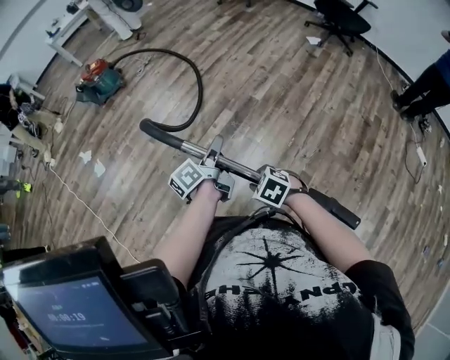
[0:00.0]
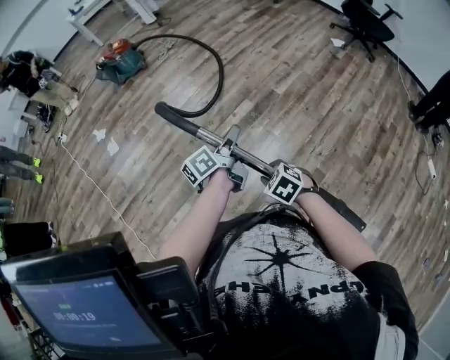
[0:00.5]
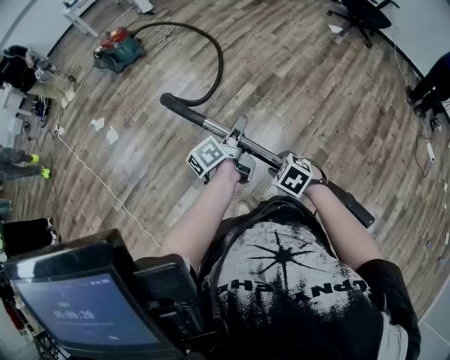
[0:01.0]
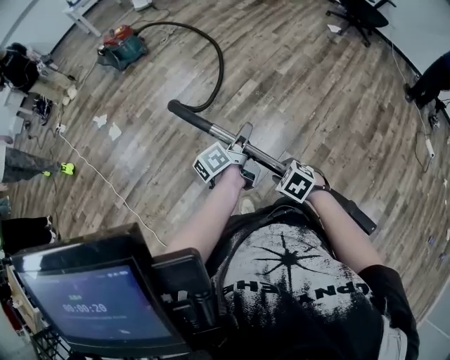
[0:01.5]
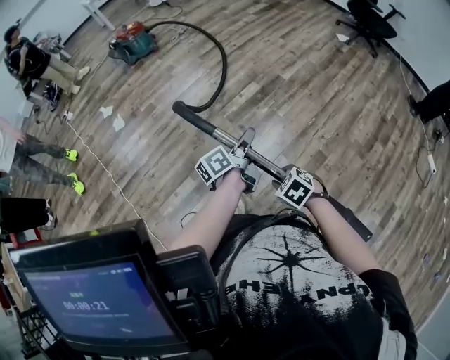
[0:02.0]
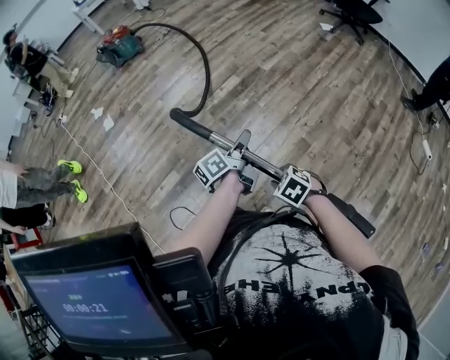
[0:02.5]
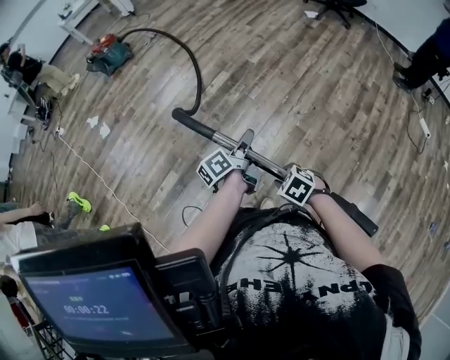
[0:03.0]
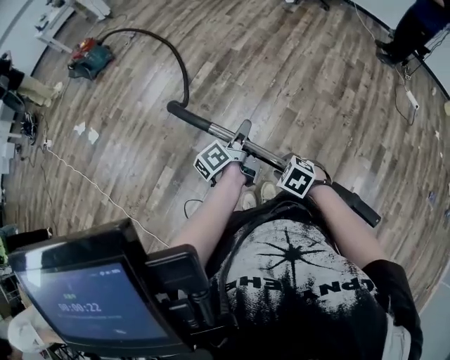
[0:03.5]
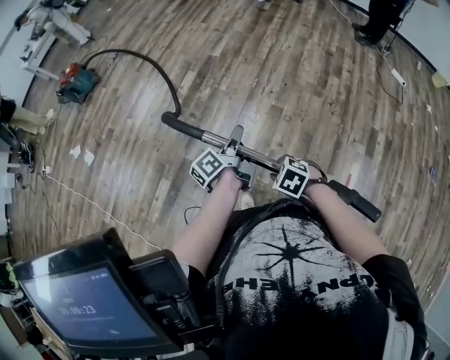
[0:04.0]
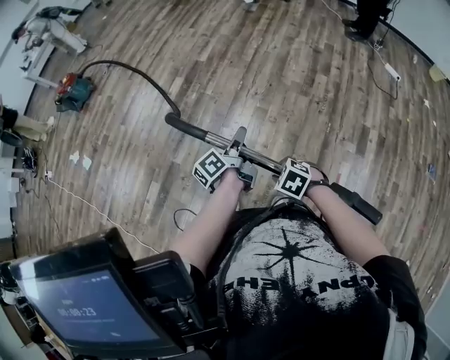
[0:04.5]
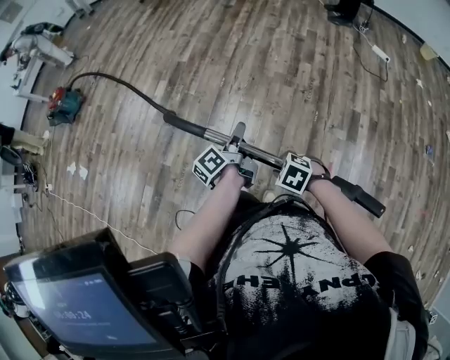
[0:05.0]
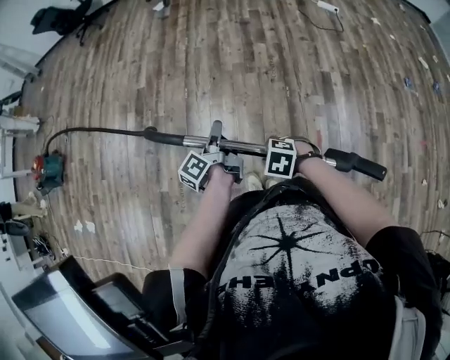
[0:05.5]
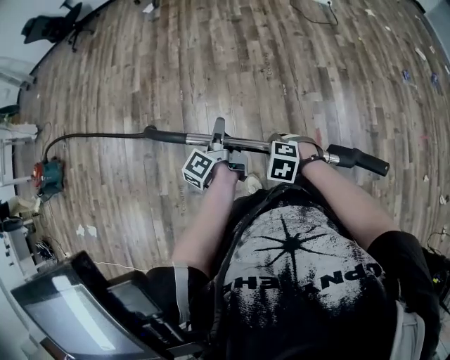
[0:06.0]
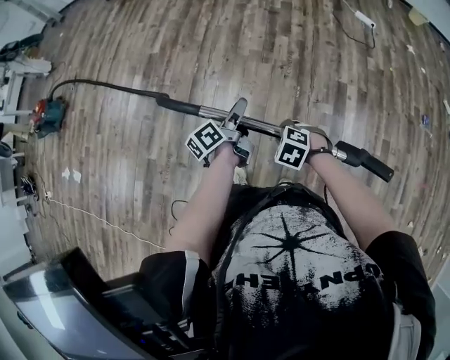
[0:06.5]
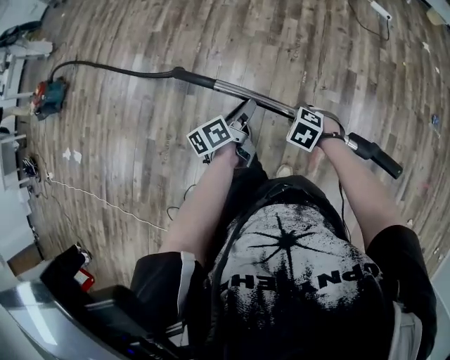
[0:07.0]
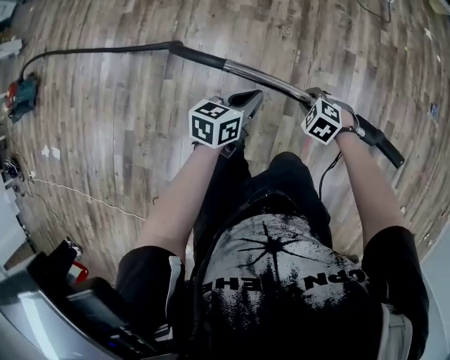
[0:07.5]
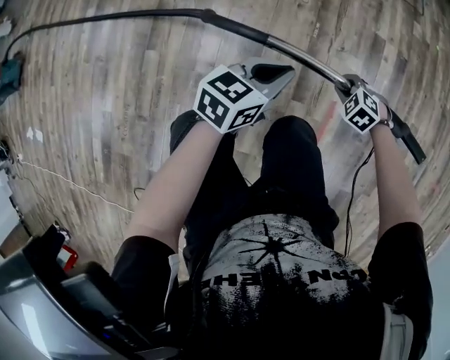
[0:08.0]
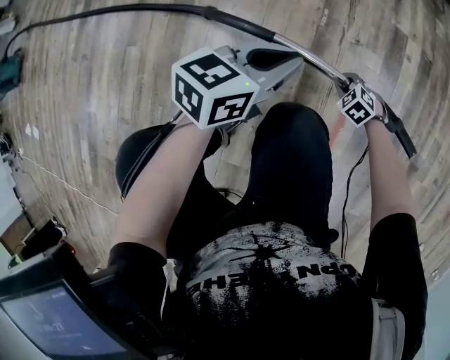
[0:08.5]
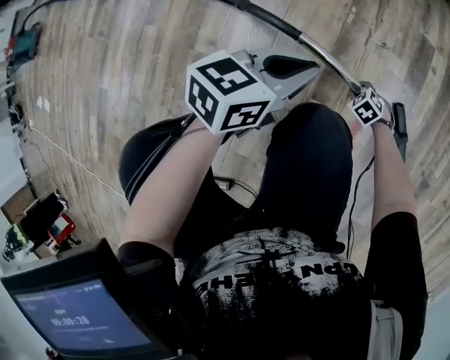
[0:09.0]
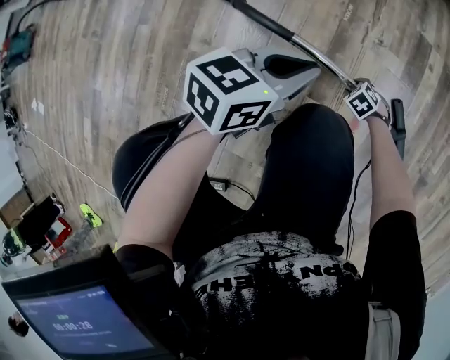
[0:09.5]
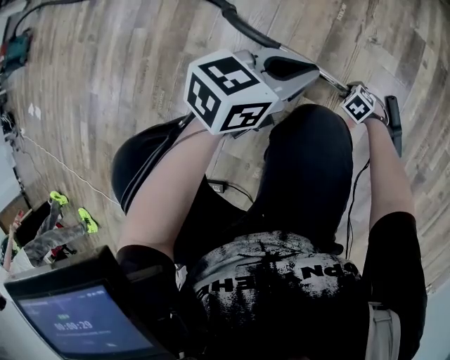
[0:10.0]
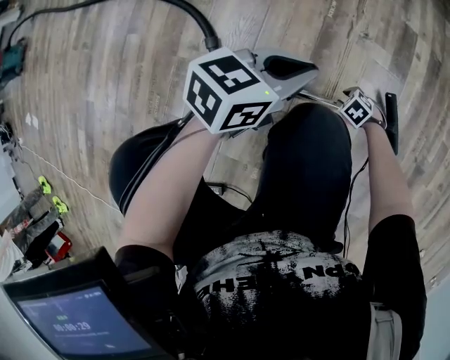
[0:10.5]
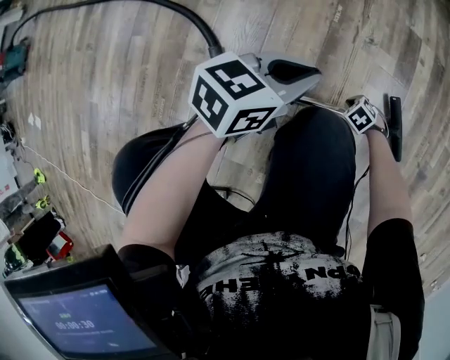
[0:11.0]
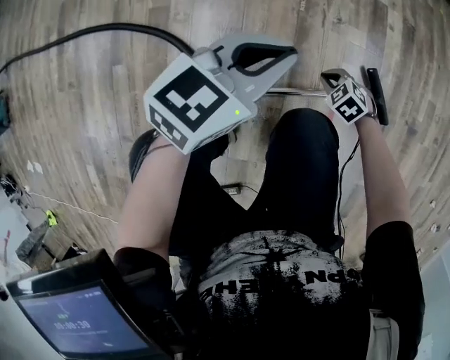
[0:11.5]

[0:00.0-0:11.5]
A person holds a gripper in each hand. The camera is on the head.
0:00.0 to 0:02.0: The grippers both shift backward and to the left by roughly 20 cm.
0:02.0 to 0:04.0: The two grippers go roughly 25 cm backward and to the right.
0:04.0 to 0:06.0: The two grippers go approximately 30 cm to the right.
0:06.0 to 0:07.5: The left gripper changes place by approximately 20 cm, changes its angle by approximately 60 degrees, and opens, then closes again; the right gripper moves about 30 cm.
0:07.5 to 0:09.5: The right gripper travels downward by some 60 cm, and opens up. Meanwhile the left gripper travels downward by about 30 cm.
0:09.5 to 0:11.5: The left gripper moves upward, some 10 cm, and rotates about 20 degrees, while the right gripper goes approximately 15 cm upward, and closes its fingers.

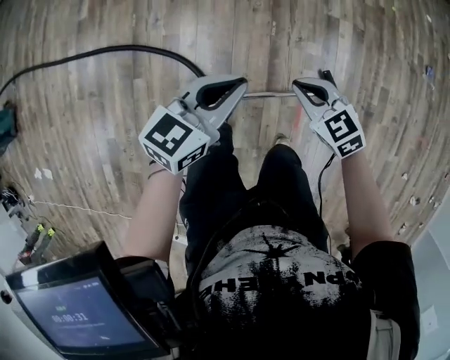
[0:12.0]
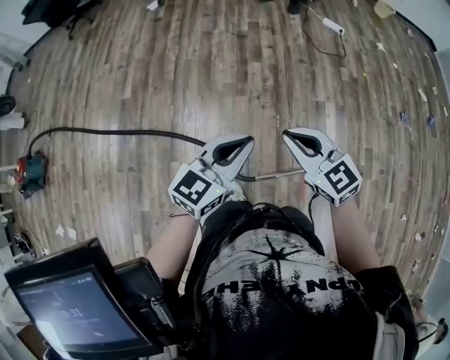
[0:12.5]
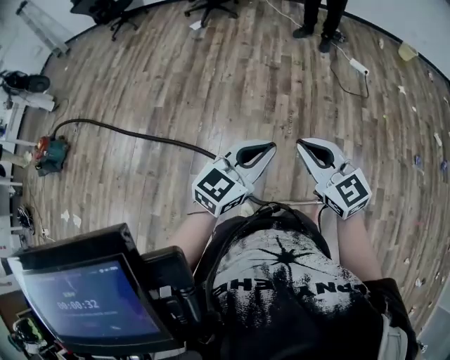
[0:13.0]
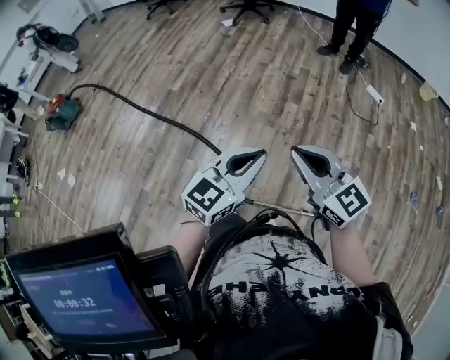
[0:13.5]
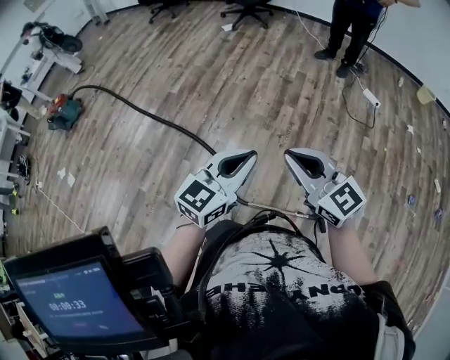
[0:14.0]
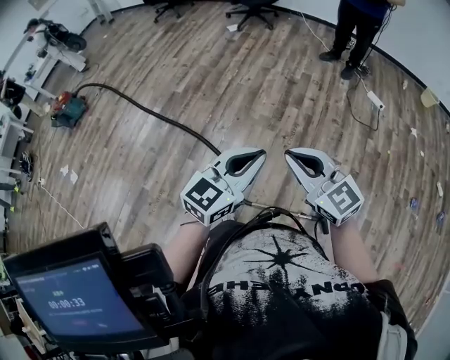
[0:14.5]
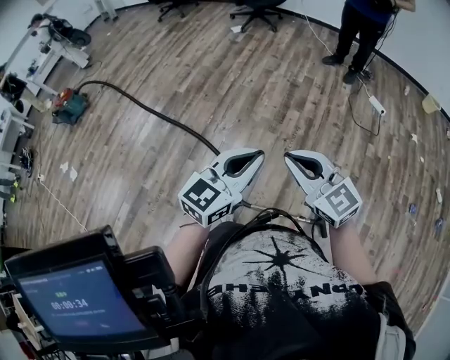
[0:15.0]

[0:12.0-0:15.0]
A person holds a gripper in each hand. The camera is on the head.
0:12.0 to 0:13.5: The grippers both shift upward by roughly 35 cm. The right gripper points its fingers approximately 40 degrees further upward; the left gripper swivels roughly 30 degrees.
0:13.5 to 0:15.0: The grippers stay close to where they were, moving slightly.

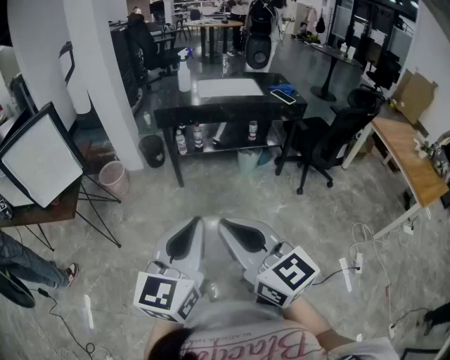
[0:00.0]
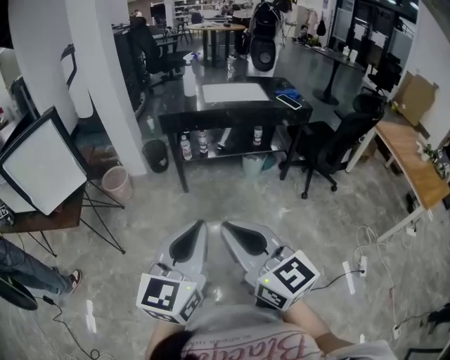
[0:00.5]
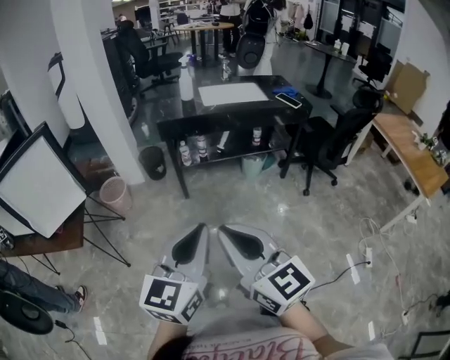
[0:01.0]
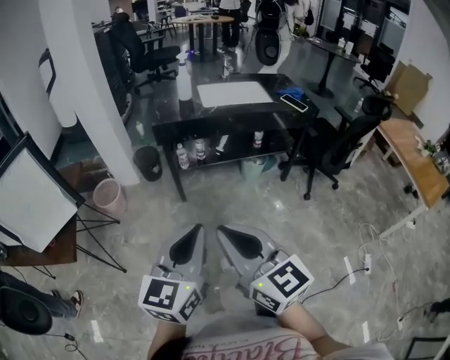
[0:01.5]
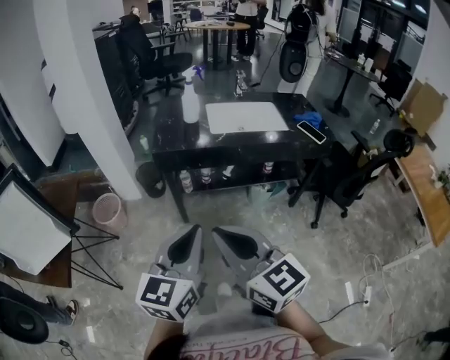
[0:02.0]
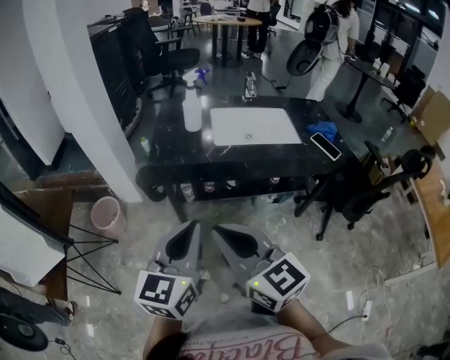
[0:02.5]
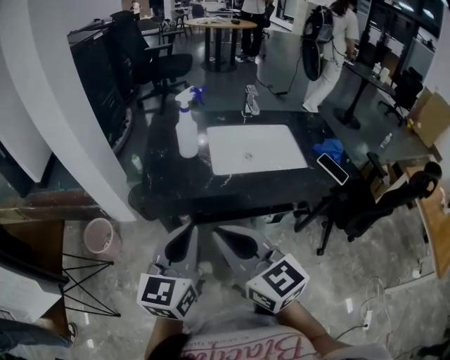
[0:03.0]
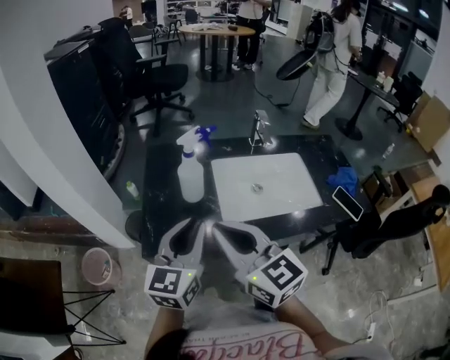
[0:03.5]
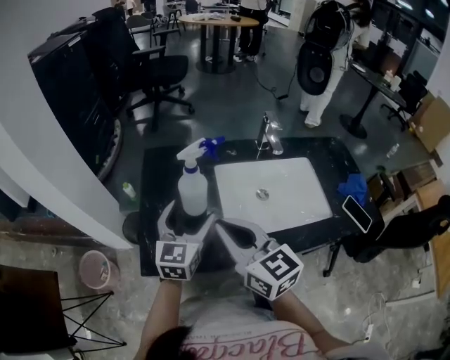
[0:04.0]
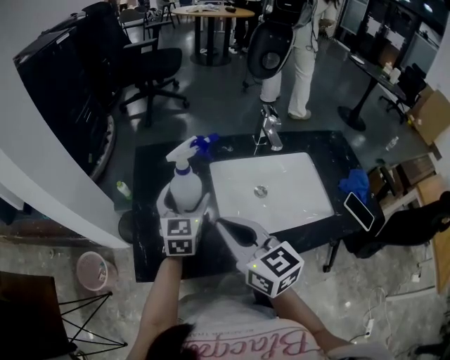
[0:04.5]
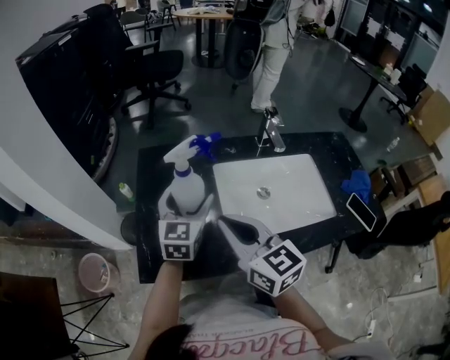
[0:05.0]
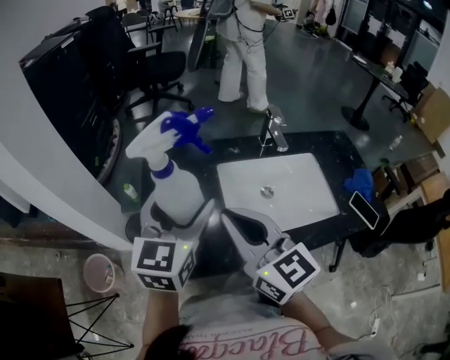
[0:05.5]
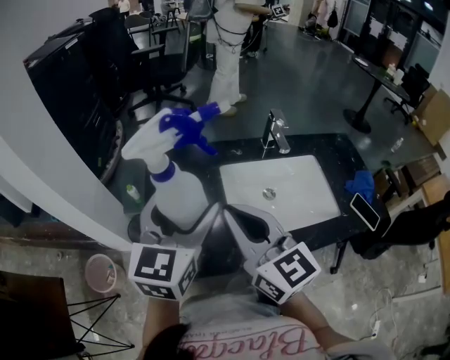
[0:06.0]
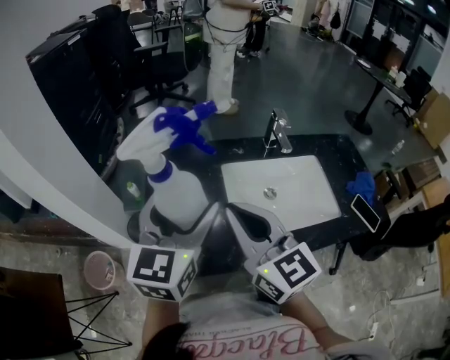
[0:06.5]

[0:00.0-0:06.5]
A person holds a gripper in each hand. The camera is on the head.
0:00.0 to 0:02.0: The grippers both shift forward by approximately 30 cm.
0:02.0 to 0:04.5: Both grippers are carried forward, about 60 cm. The left gripper opens its fingers.
0:04.5 to 0:06.5: The left gripper moves upward and backward, roughly 20 cm. The right gripper shifts roughly 10 cm upward.

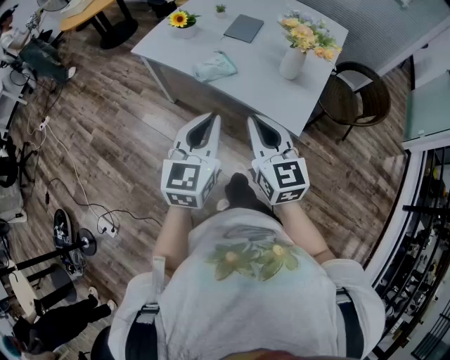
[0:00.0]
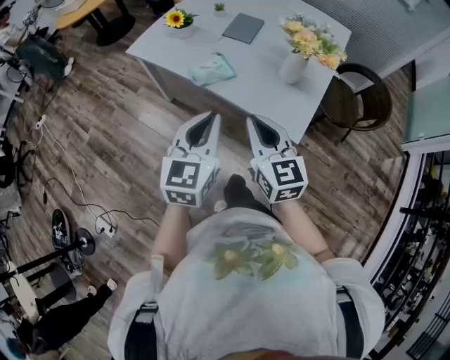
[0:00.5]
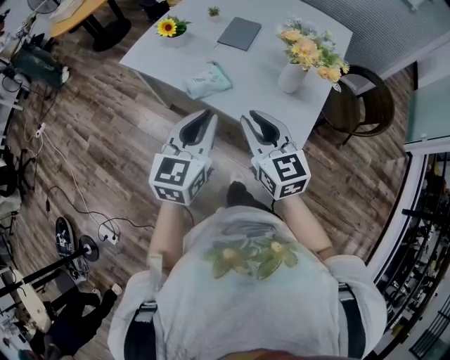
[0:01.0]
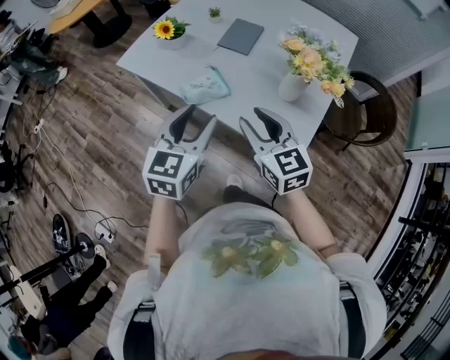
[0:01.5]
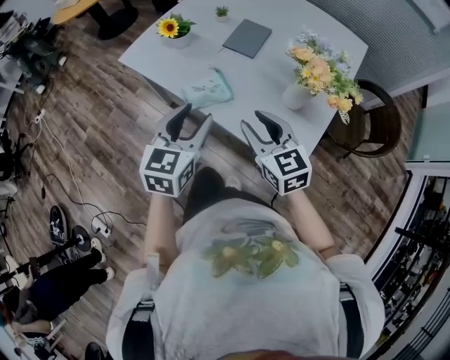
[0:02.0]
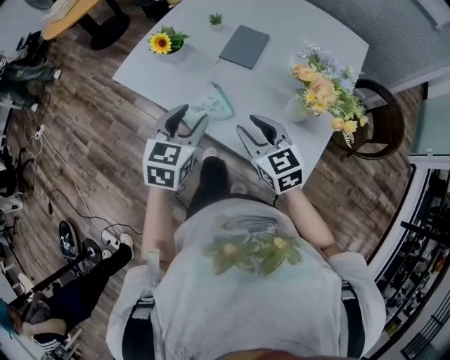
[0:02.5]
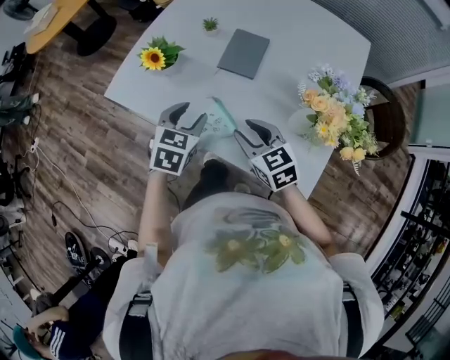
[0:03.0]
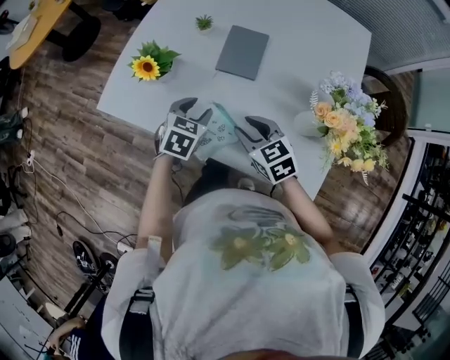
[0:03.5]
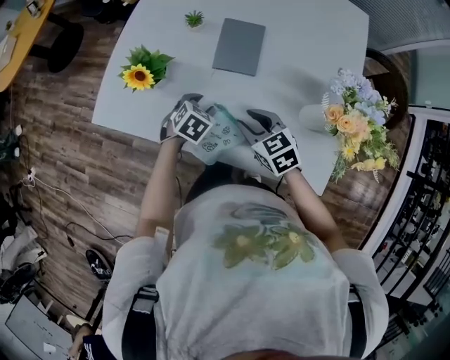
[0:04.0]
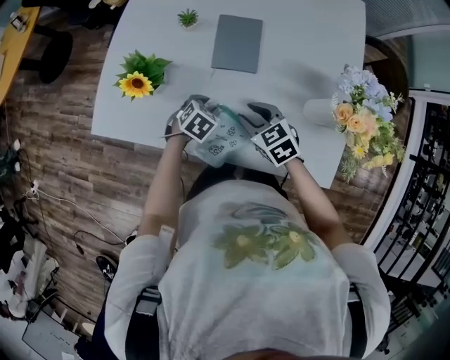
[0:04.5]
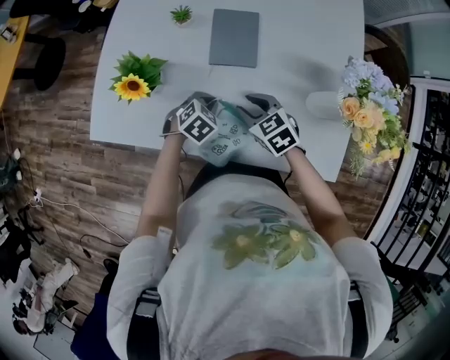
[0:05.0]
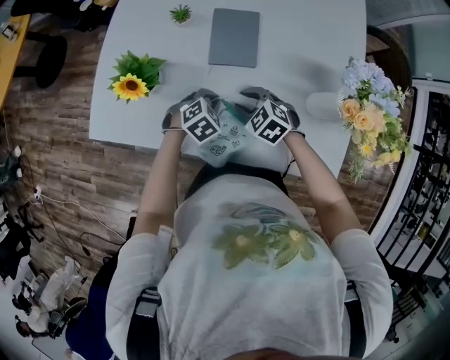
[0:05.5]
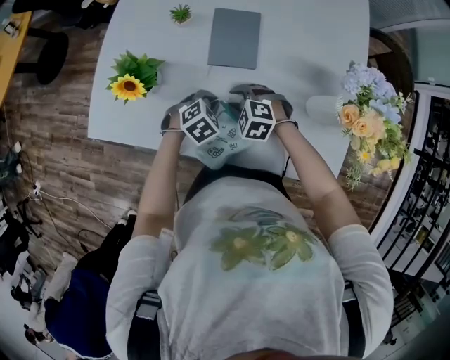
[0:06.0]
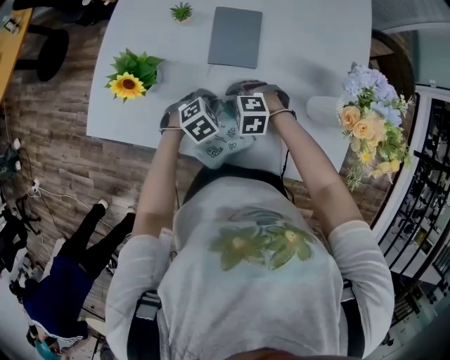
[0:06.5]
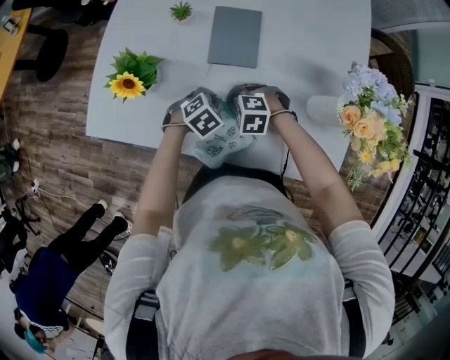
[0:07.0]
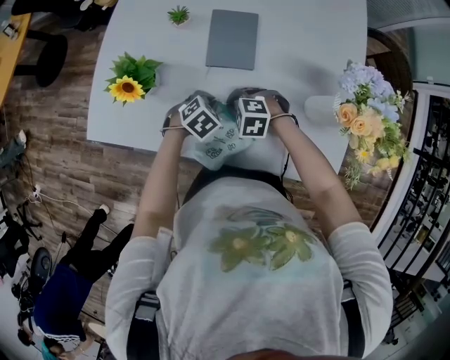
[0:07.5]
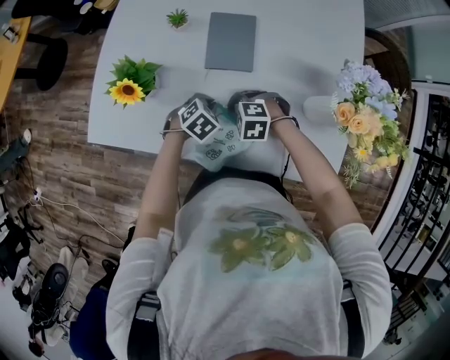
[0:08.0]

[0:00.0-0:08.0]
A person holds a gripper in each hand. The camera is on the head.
0:00.0 to 0:02.0: The grippers both shift forward by approximately 20 cm. The right gripper opens its fingers. The left gripper opens its fingers.
0:02.0 to 0:04.0: The grippers both shift forward and downward by roughly 30 cm. The right gripper swivels approximately 20 degrees, while the left gripper tilts its fingers roughly 40 degrees downward.
0:04.0 to 0:06.0: The left gripper changes place by approximately 5 cm, turns by some 20 degrees, and closes up; the right gripper heads downward and forward, covering some 15 cm, and changes its angle by some 40 degrees.
0:06.0 to 0:08.0: The right gripper closes its fingers.
